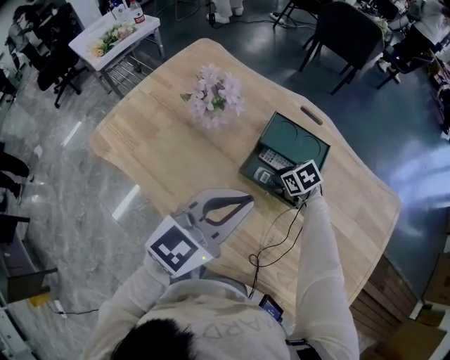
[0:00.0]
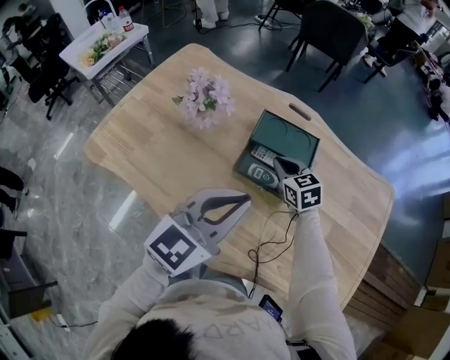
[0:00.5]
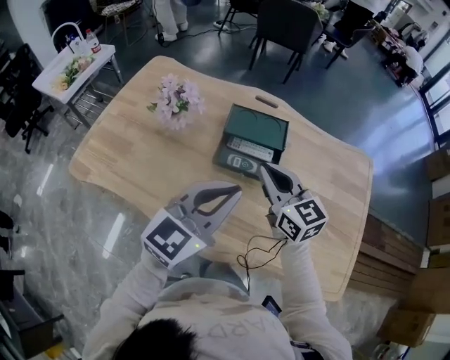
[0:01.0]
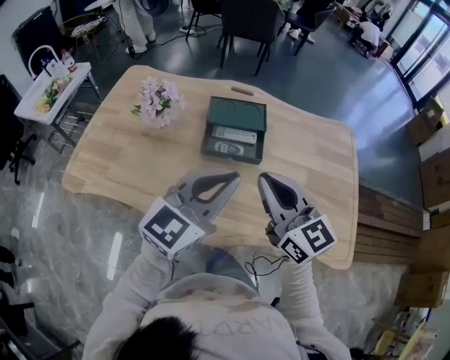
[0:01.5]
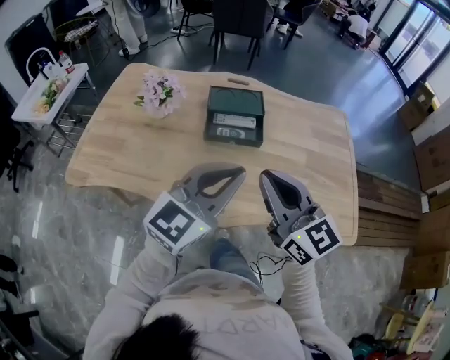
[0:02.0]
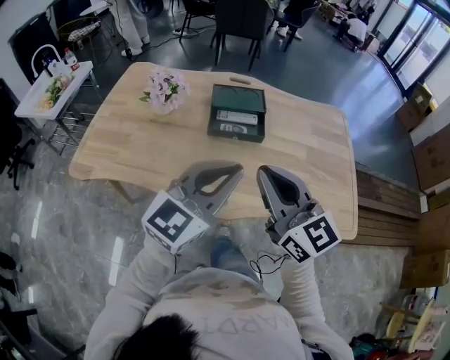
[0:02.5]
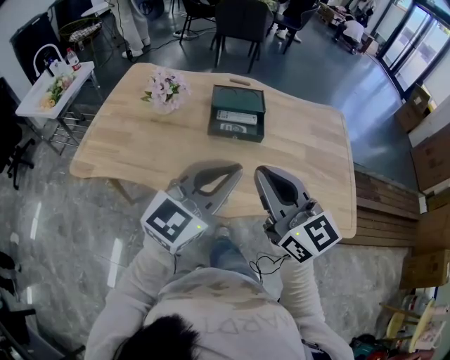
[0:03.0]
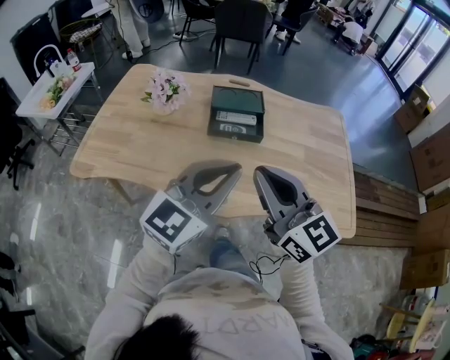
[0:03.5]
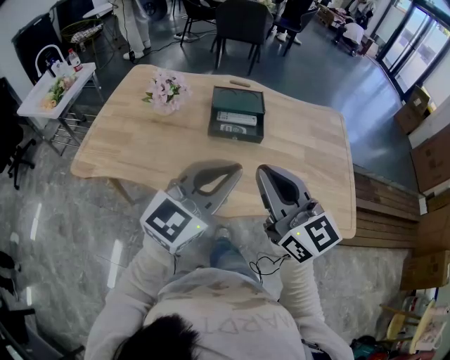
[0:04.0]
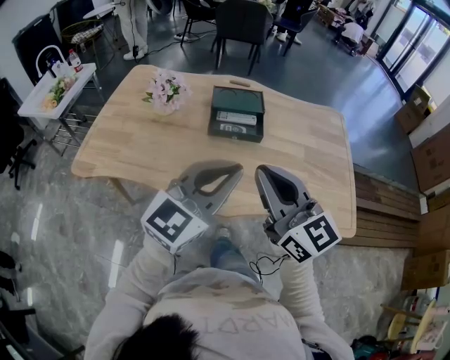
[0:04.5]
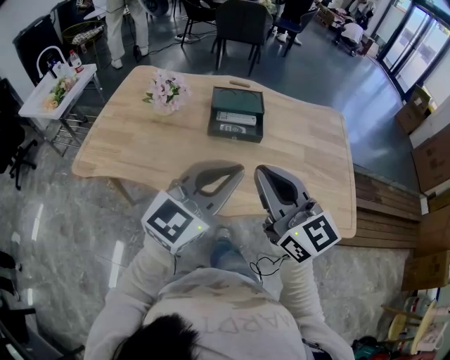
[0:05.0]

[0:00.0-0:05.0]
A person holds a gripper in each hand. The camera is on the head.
0:00.0 to 0:02.5: The left gripper ends up some 20 cm from where it was, and rotates about 30 degrees, while the right gripper moves some 50 cm, angles its fingers upward, by roughly 60 degrees, and closes.
0:02.5 to 0:05.0: The grippers stay close to where they were, moving slightly.

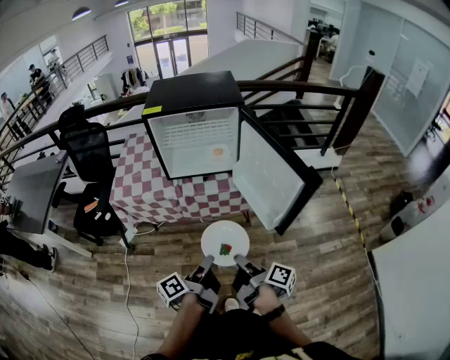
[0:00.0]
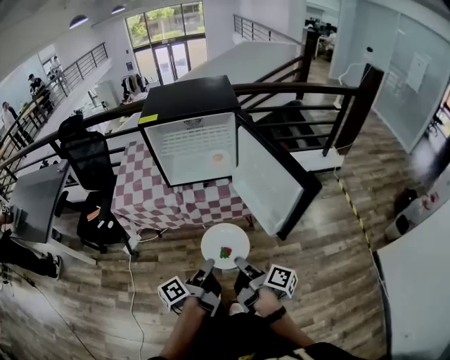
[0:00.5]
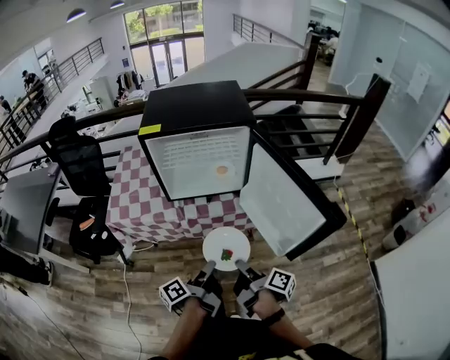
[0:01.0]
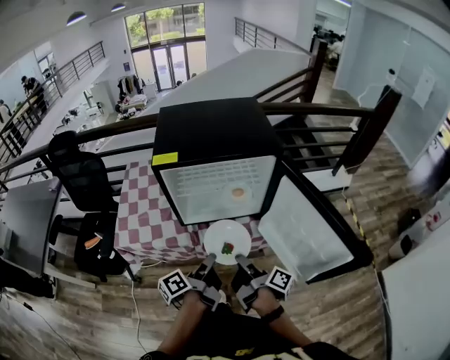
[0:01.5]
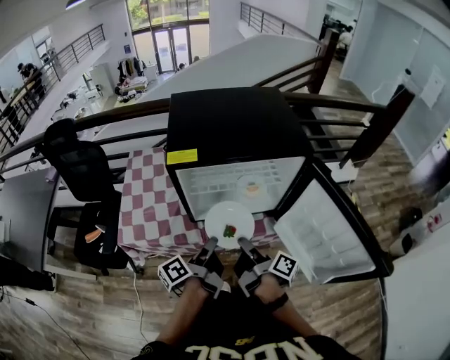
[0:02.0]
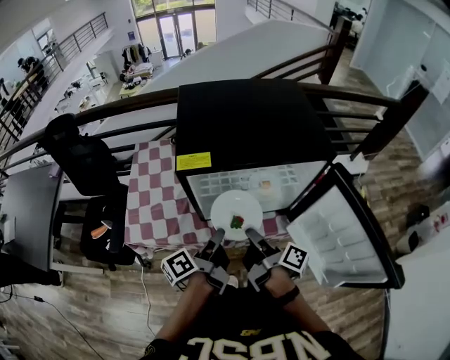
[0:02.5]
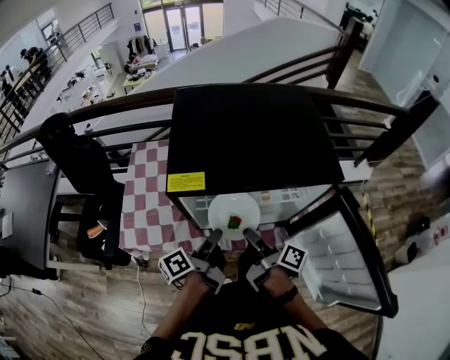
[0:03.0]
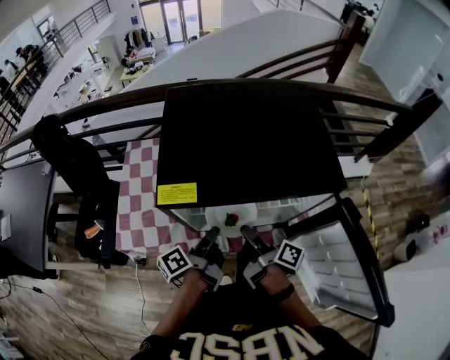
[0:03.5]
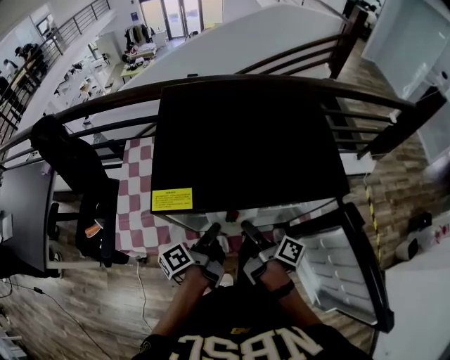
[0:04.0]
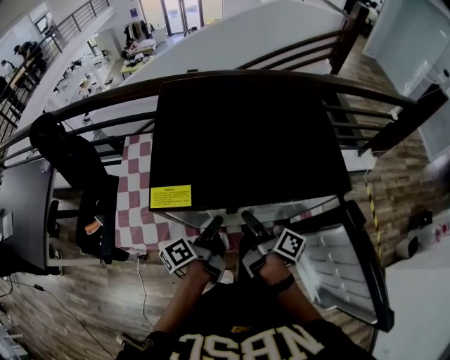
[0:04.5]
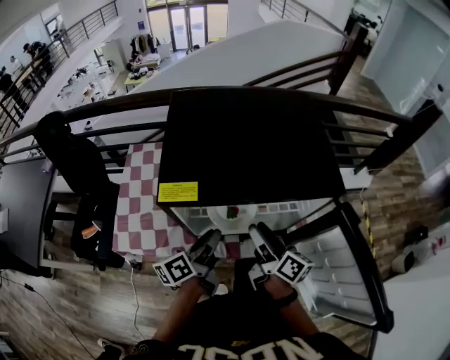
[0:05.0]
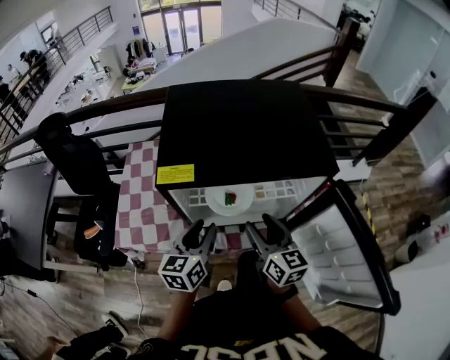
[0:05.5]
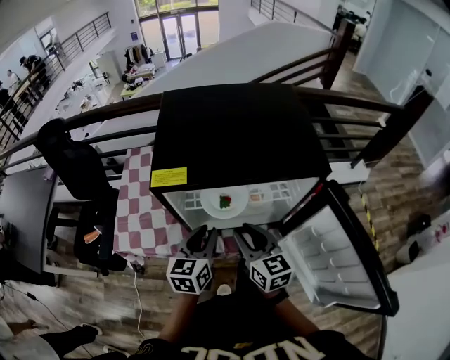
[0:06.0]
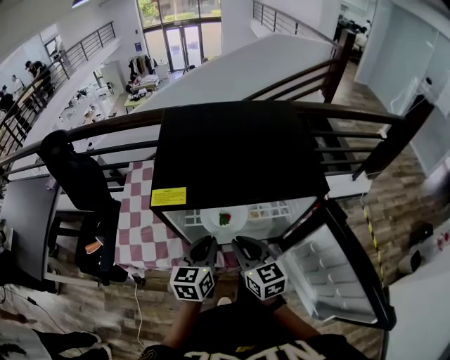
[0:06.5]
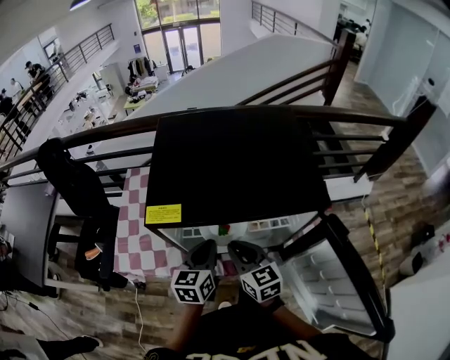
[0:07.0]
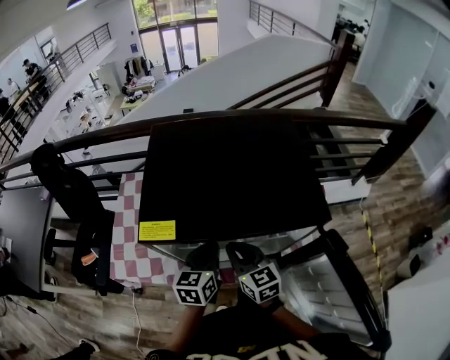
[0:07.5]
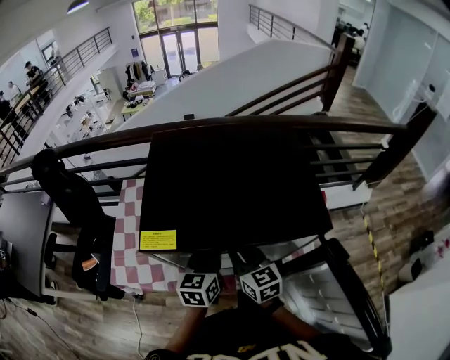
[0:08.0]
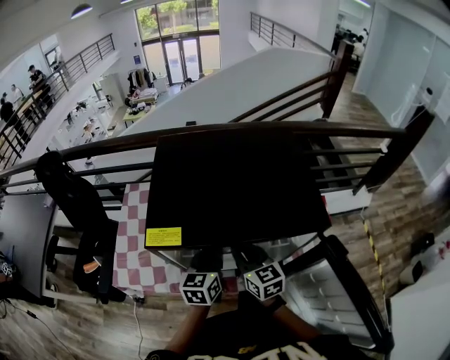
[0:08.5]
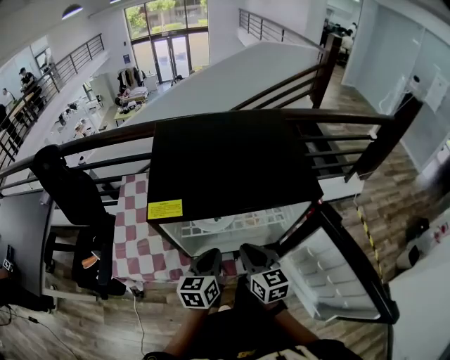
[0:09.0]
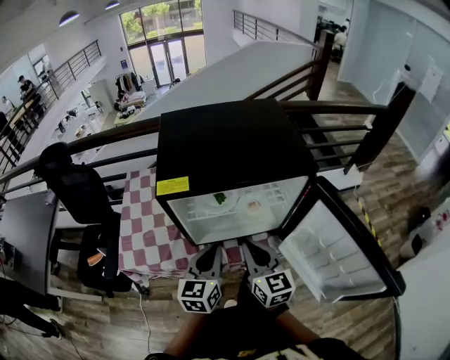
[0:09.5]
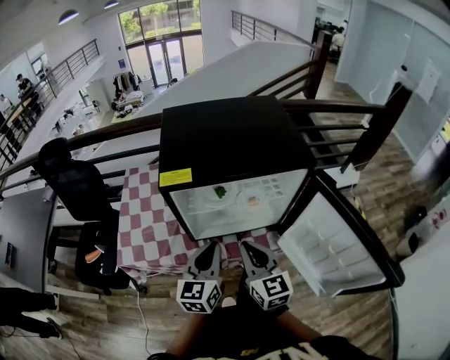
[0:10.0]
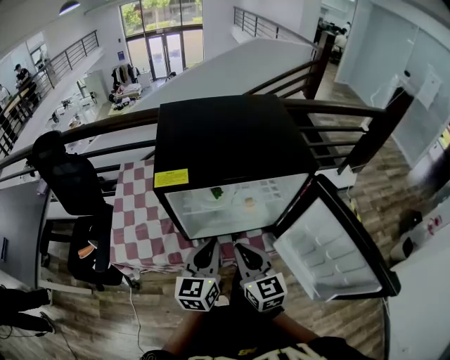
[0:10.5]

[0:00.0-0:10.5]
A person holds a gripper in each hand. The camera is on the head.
0:00.0 to 0:02.0: The right gripper shifts roughly 35 cm forward and to the left. Meanwhile the left gripper goes approximately 35 cm forward.
0:02.0 to 0:04.0: The two grippers go roughly 15 cm forward.
0:04.0 to 0:06.5: The right gripper ends up roughly 5 cm from where it was, twists roughly 80 degrees counterclockwise, seen from behind, and opens, then closes once more. The left gripper rolls clockwise, seen from behind, by approximately 70 degrees, and opens, then closes once more.
0:06.5 to 0:08.5: Both grippers move forward, about 10 cm.
0:08.5 to 0:10.5: Both grippers travel together backward, some 15 cm.

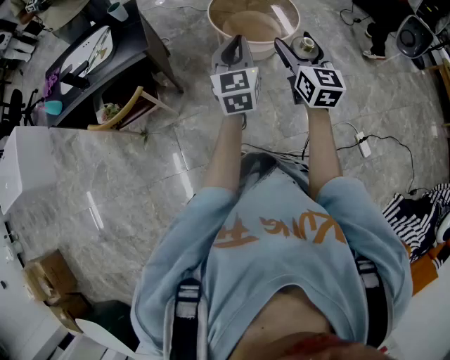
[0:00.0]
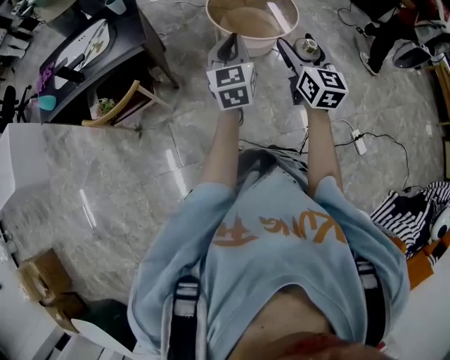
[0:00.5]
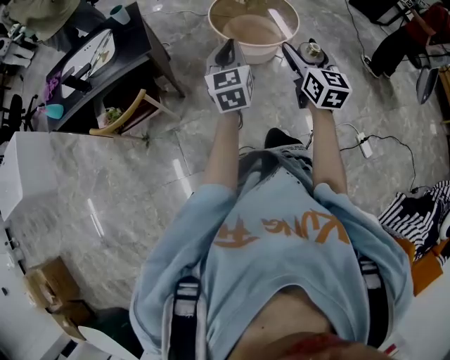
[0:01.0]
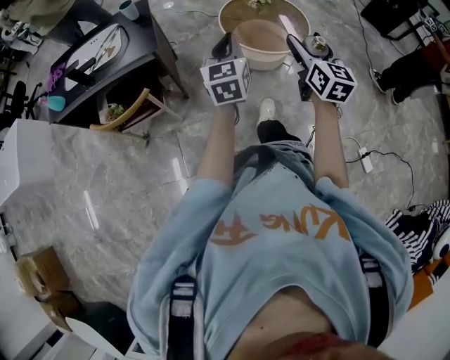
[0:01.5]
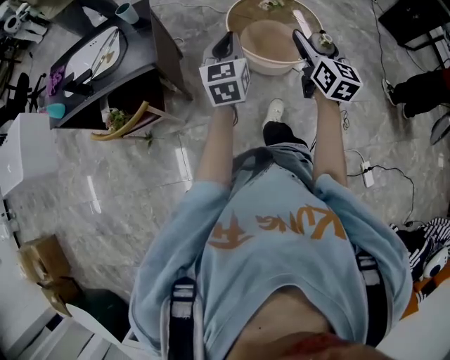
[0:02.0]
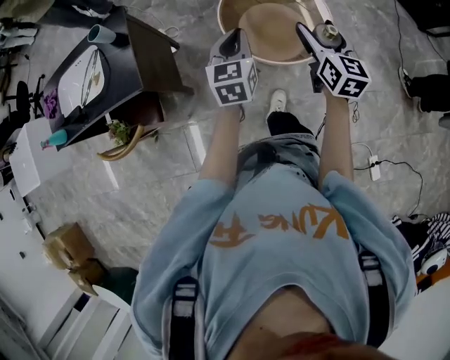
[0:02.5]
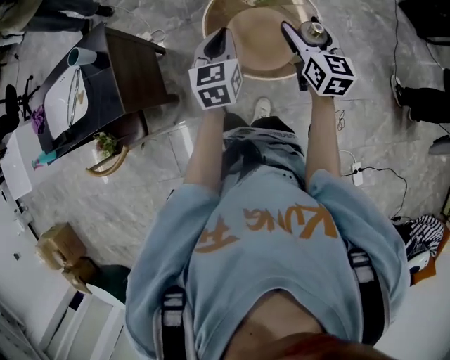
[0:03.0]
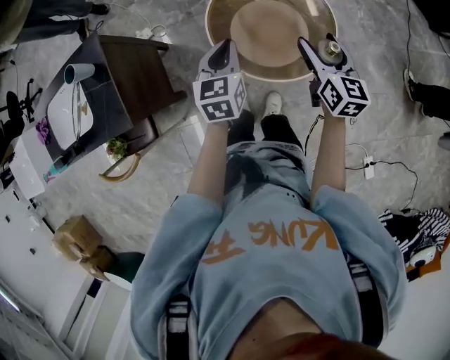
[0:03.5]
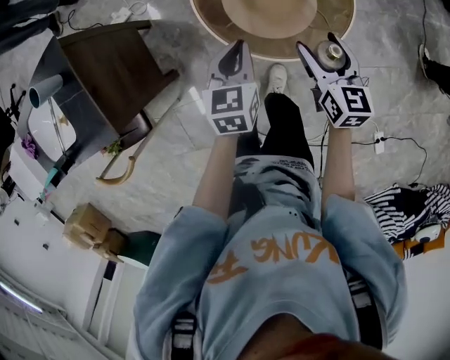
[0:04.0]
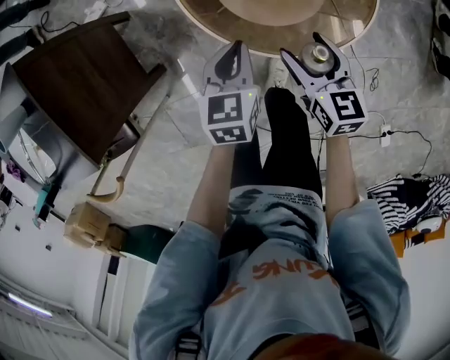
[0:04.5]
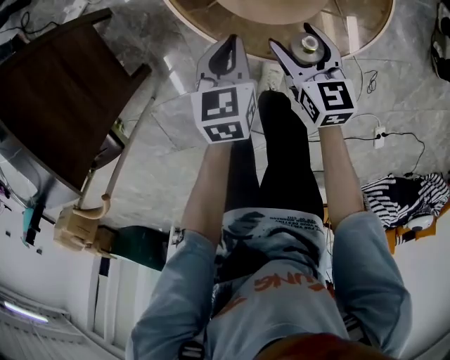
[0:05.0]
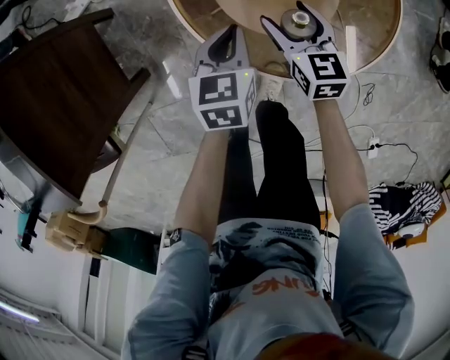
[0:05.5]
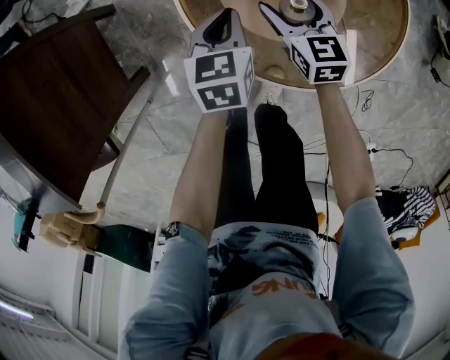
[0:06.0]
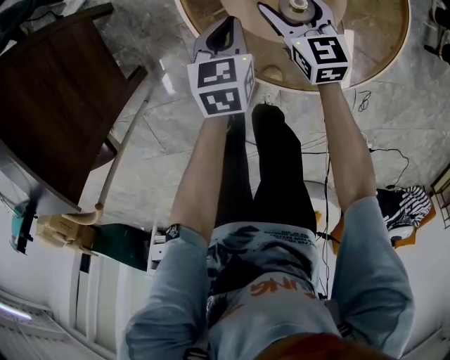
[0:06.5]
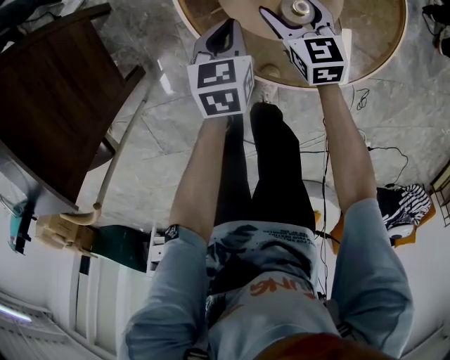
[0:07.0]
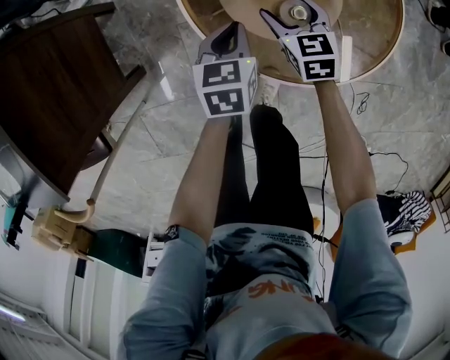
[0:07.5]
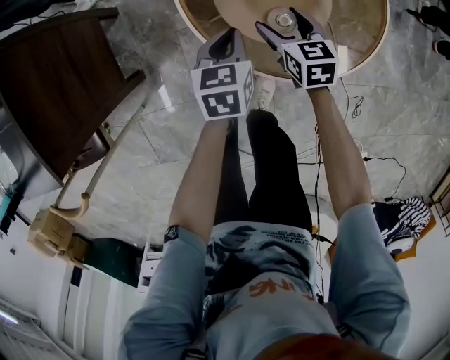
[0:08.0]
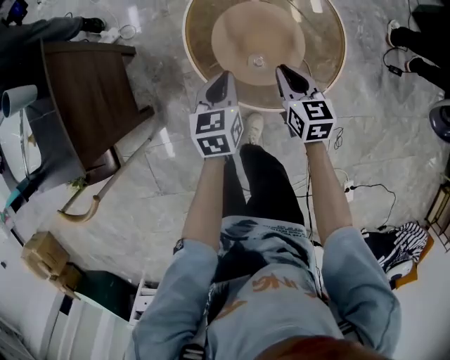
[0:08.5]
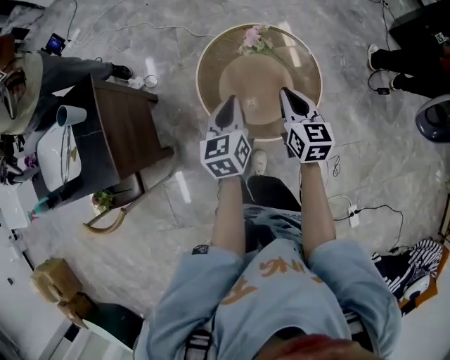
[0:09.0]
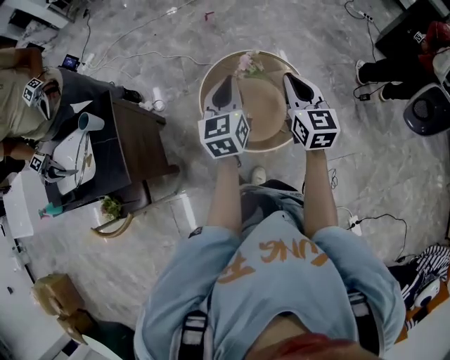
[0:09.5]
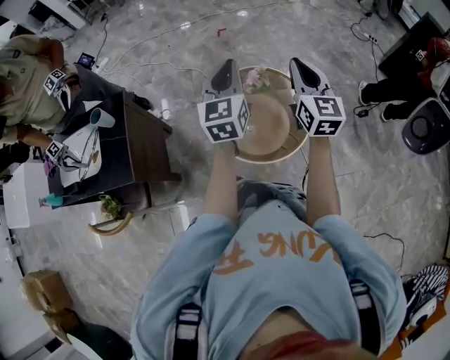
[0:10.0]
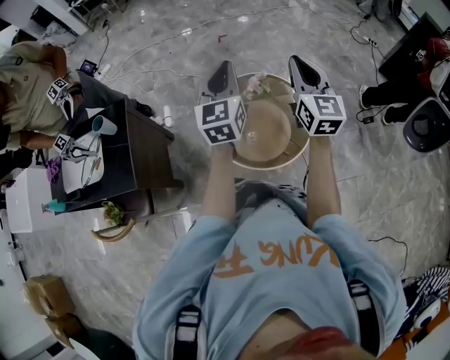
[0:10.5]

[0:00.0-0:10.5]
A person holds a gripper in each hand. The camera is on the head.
0:00.0 to 0:02.0: Both grippers move forward, roughly 20 cm.
0:02.0 to 0:04.0: The right gripper is displaced forward and downward by some 40 cm, and changes its angle by some 20 degrees. Meanwhile the left gripper goes about 40 cm forward, downward and to the right, and turns by about 30 degrees.
0:04.0 to 0:06.5: The left gripper travels downward by approximately 25 cm, while the right gripper goes roughly 30 cm downward and forward, and rotates some 20 degrees.
0:06.5 to 0:08.5: The left gripper travels upward by approximately 20 cm; the right gripper is displaced upward and backward by about 20 cm, and closes its fingers.
0:08.5 to 0:10.5: Both grippers move upward, approximately 50 cm. The left gripper angles its fingers upward, by roughly 40 degrees, while the right gripper tips its fingers upward by some 40 degrees.

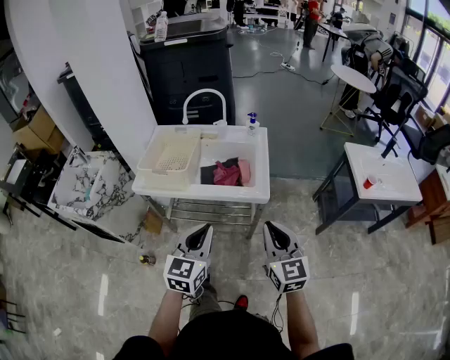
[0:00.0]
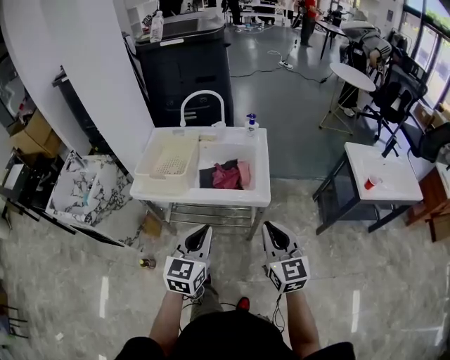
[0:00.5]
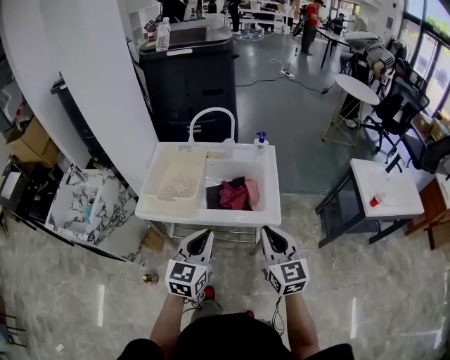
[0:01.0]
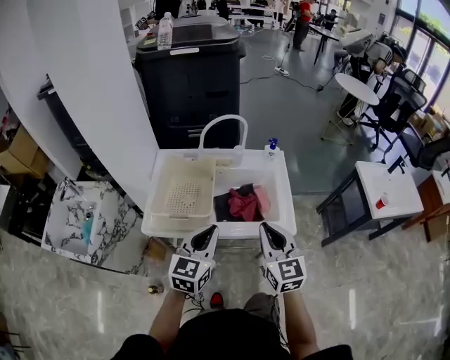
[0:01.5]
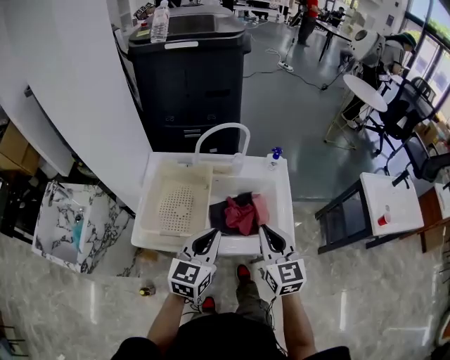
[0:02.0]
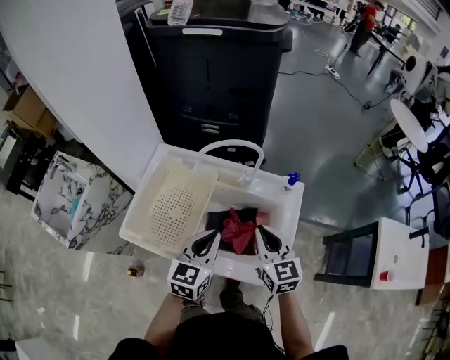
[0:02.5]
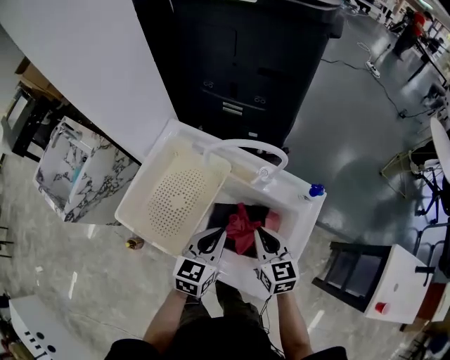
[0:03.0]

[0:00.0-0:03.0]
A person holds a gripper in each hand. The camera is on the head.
0:00.0 to 0:01.5: The two grippers go roughly 25 cm forward and to the left.
0:01.5 to 0:03.0: The grippers both shift forward and downward by approximately 30 cm. The left gripper turns by some 30 degrees, while the right gripper swivels some 30 degrees.